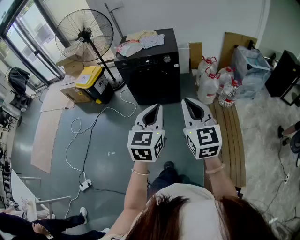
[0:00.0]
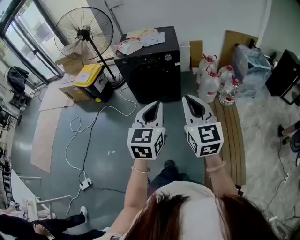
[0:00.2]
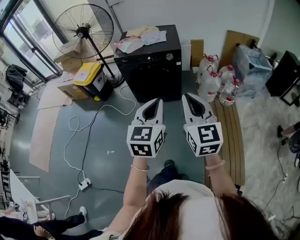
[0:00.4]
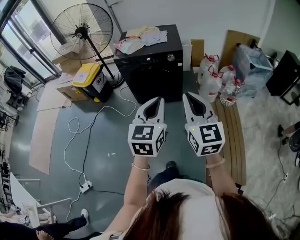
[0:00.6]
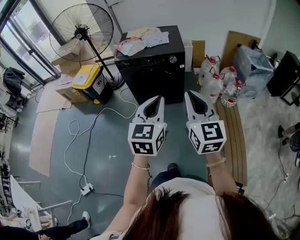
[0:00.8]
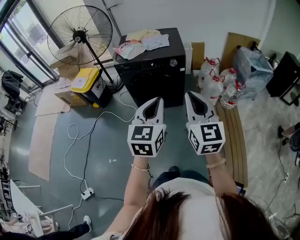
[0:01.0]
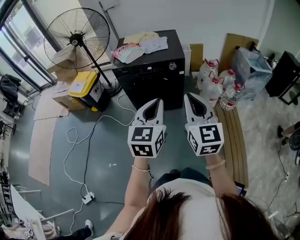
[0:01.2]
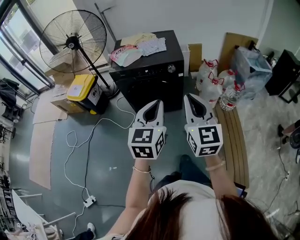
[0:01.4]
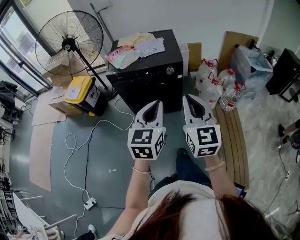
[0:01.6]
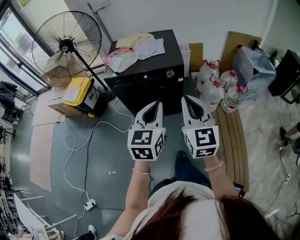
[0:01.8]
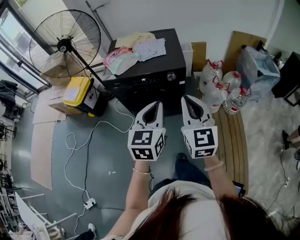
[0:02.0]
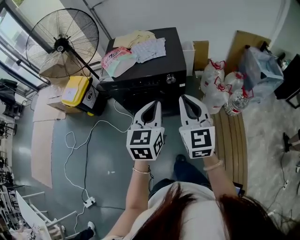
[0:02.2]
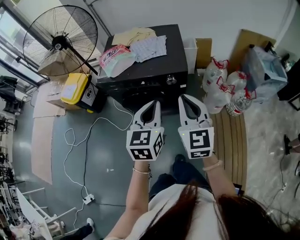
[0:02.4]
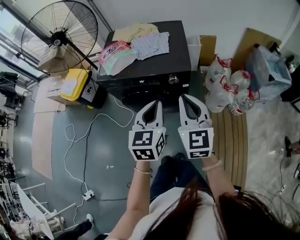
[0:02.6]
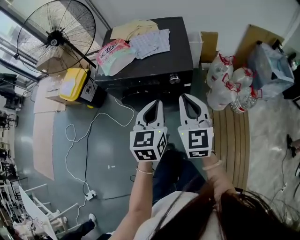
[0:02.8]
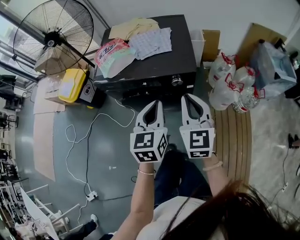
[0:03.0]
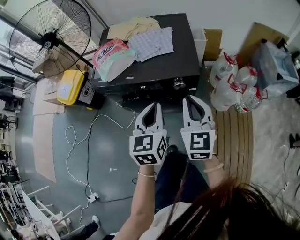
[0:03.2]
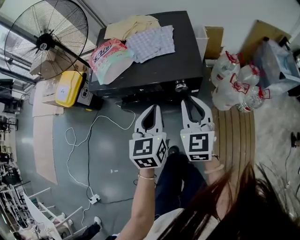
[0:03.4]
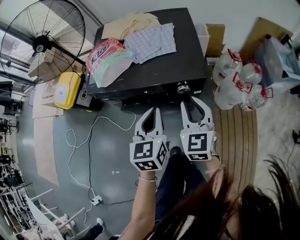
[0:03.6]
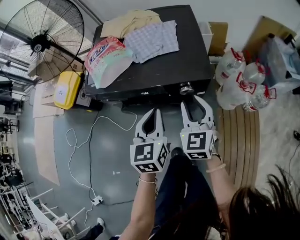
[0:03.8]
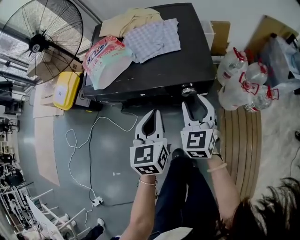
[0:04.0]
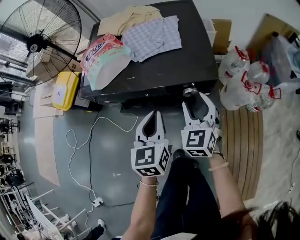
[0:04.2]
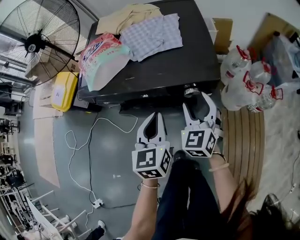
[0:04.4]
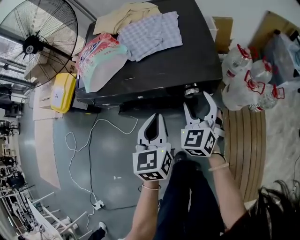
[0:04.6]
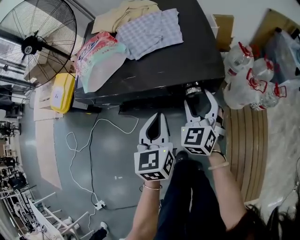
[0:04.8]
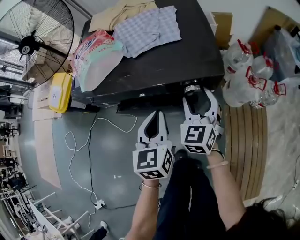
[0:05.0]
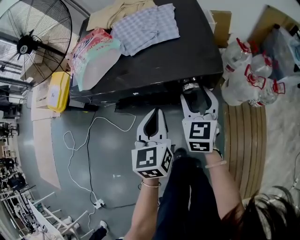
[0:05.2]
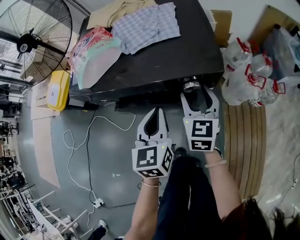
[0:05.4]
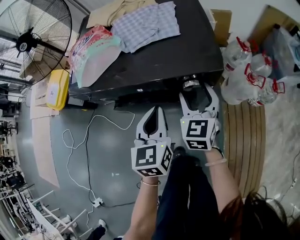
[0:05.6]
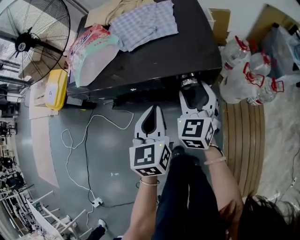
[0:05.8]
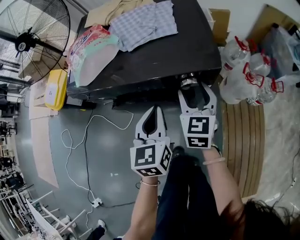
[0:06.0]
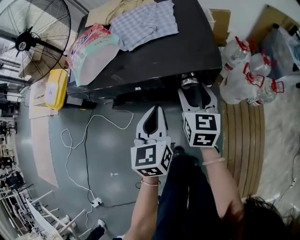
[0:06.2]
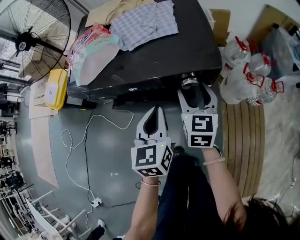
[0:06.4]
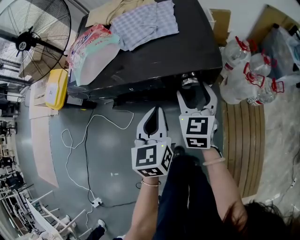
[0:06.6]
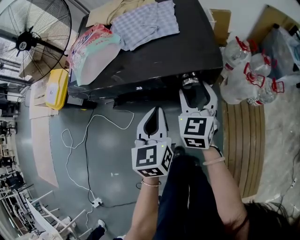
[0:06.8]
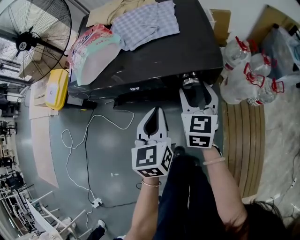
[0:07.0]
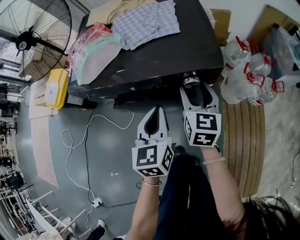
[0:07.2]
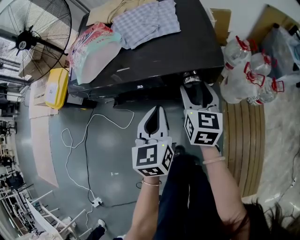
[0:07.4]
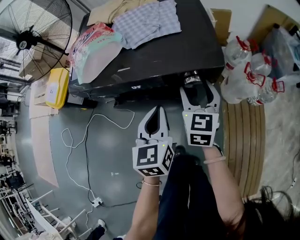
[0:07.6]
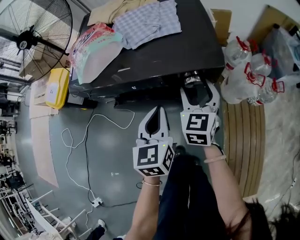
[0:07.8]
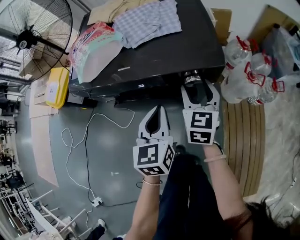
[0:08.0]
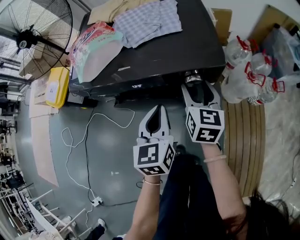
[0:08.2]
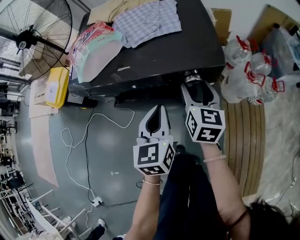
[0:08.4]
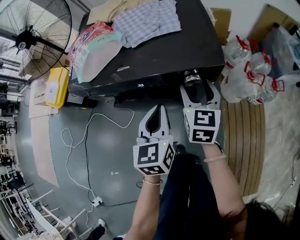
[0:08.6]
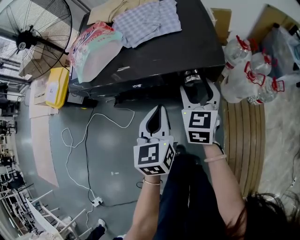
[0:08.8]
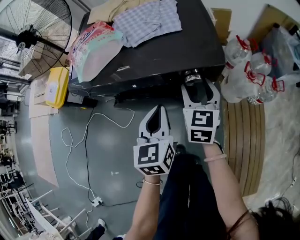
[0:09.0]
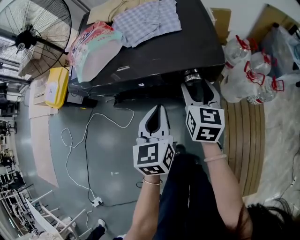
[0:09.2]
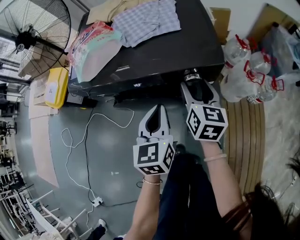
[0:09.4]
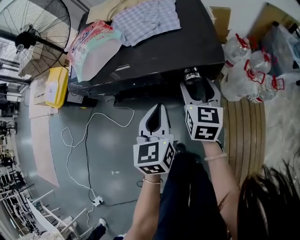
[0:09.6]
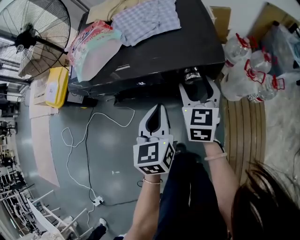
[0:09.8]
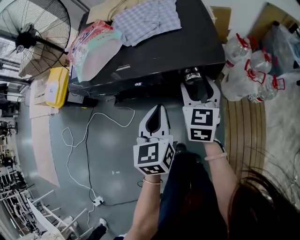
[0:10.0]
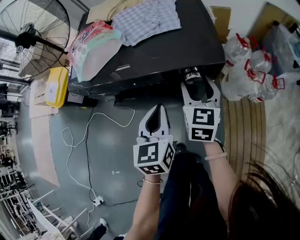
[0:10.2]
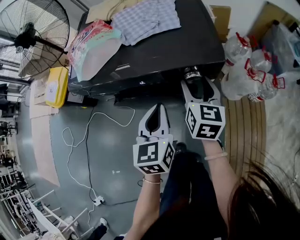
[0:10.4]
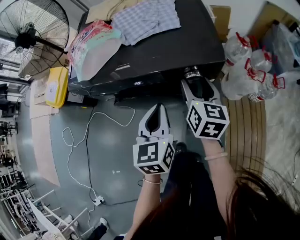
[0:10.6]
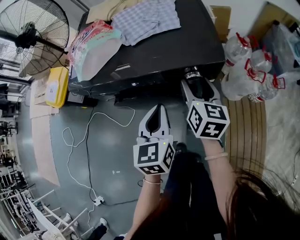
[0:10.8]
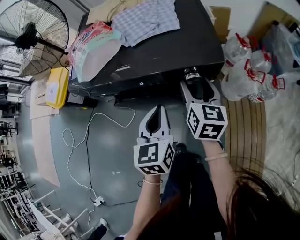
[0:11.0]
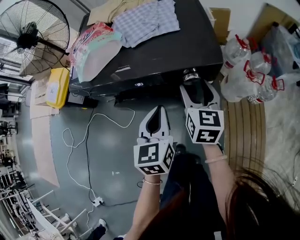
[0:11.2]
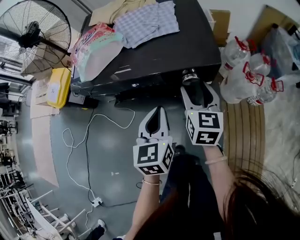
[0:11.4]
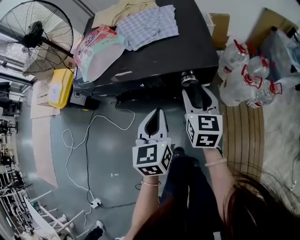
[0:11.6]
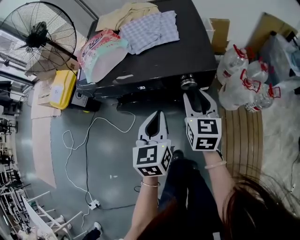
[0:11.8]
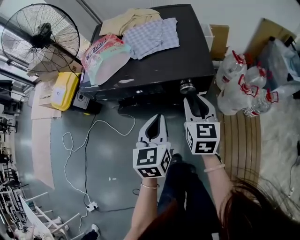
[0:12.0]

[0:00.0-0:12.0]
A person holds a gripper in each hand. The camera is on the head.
0.0 to 1.6 s: Both grippers move forward, about 25 cm.
1.6 to 3.0 s: Both grippers move forward and downward, roughly 30 cm.
3.0 to 4.4 s: Both grippers move downward and forward, roughly 20 cm. The right gripper turns by some 20 degrees, and opens up.
4.4 to 6.0 s: The right gripper turns by some 20 degrees.
6.0 to 7.6 s: The grippers stay close to where they were, moving slightly.
7.6 to 9.0 s: The grippers make only small movements.
10.4 to 12.0 s: The right gripper moves approximately 5 cm, and closes up. Meanwhile the left gripper shifts by some 5 cm.

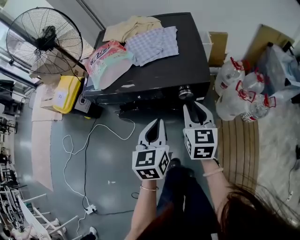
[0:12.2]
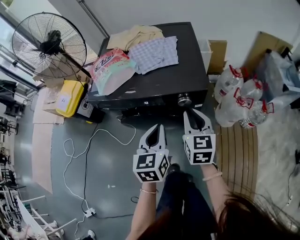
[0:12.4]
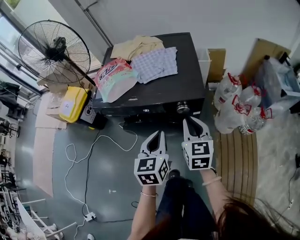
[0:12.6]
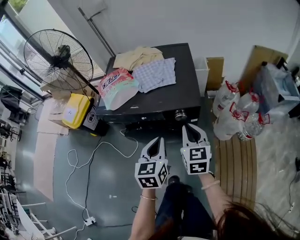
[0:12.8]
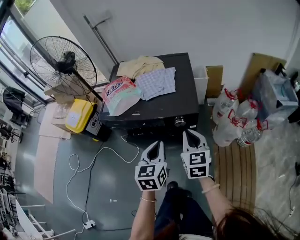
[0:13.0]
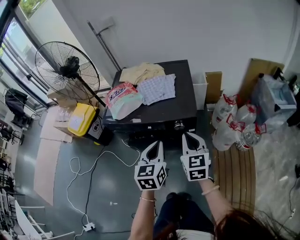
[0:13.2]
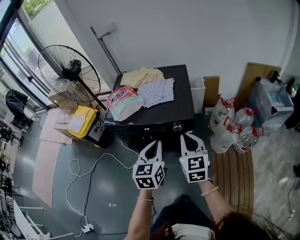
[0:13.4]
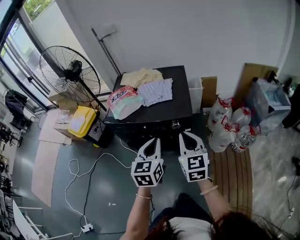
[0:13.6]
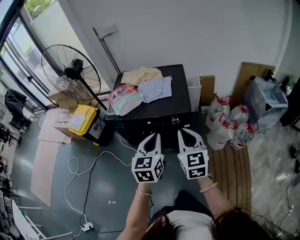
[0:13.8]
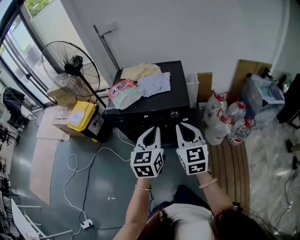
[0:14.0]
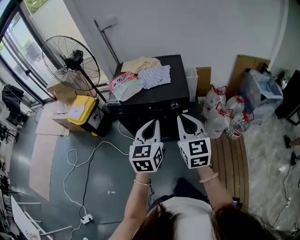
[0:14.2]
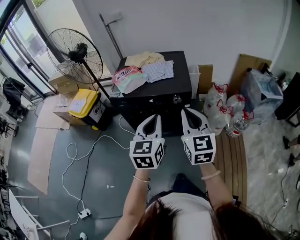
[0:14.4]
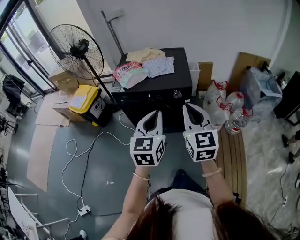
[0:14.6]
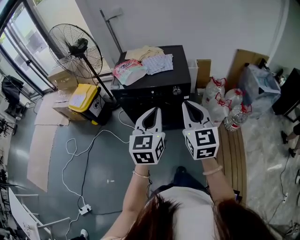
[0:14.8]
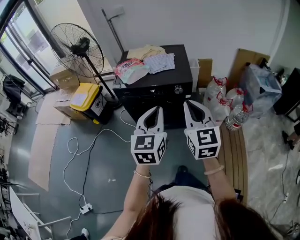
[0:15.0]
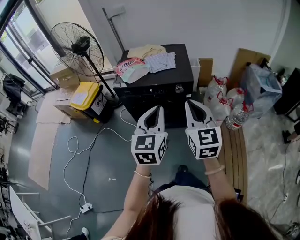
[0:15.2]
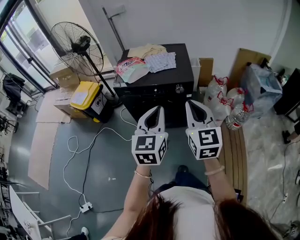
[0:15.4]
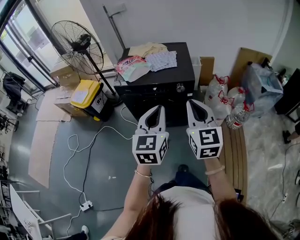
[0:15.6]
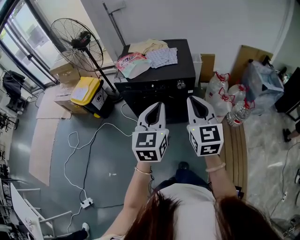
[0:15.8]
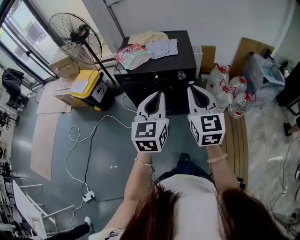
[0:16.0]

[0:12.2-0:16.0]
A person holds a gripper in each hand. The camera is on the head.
12.2 to 13.4 s: The left gripper goes about 15 cm upward. The right gripper heads upward and backward, covering some 15 cm.
13.4 to 14.8 s: Both grippers travel together backward and upward, about 20 cm.
14.8 to 16.0 s: The grippers move only a little.

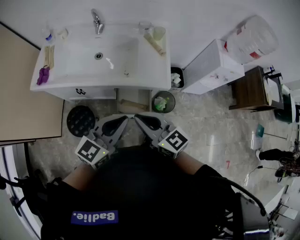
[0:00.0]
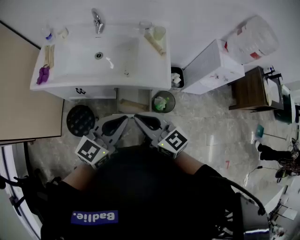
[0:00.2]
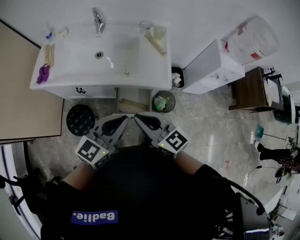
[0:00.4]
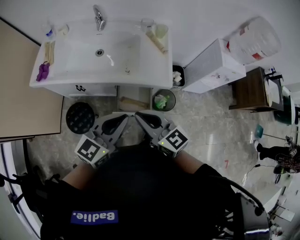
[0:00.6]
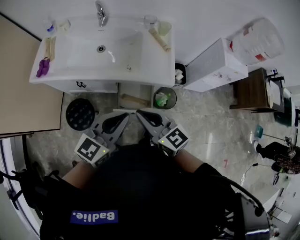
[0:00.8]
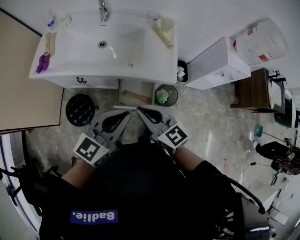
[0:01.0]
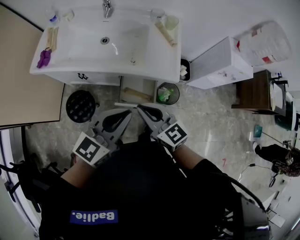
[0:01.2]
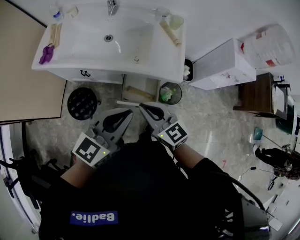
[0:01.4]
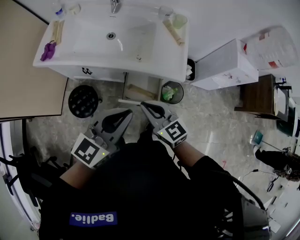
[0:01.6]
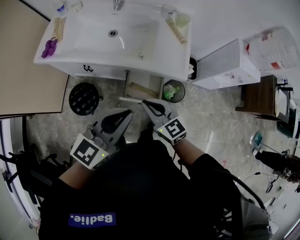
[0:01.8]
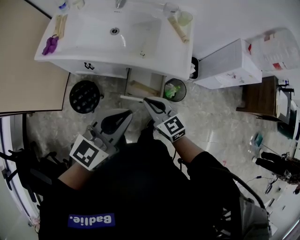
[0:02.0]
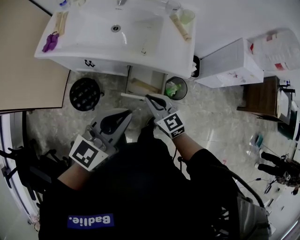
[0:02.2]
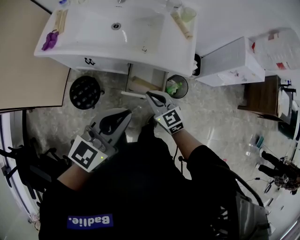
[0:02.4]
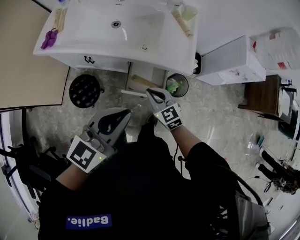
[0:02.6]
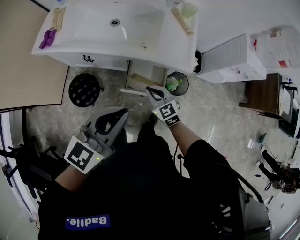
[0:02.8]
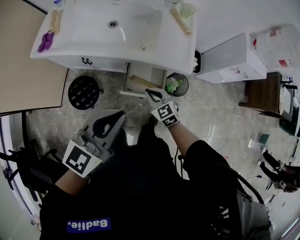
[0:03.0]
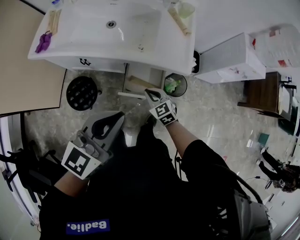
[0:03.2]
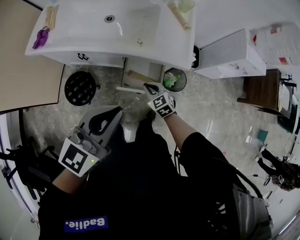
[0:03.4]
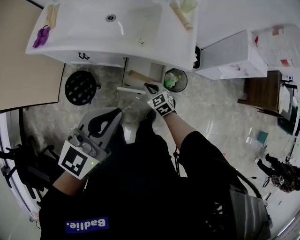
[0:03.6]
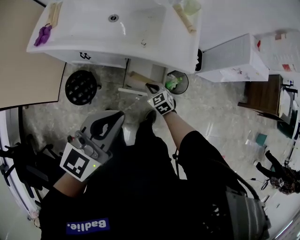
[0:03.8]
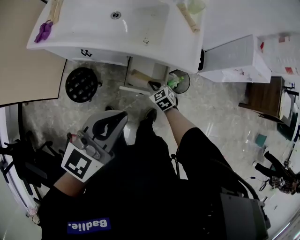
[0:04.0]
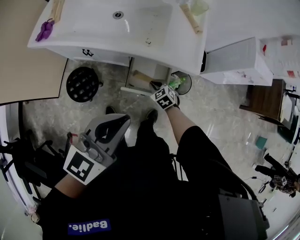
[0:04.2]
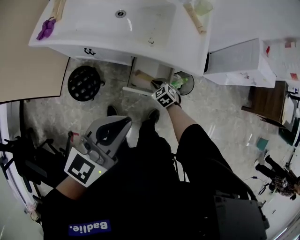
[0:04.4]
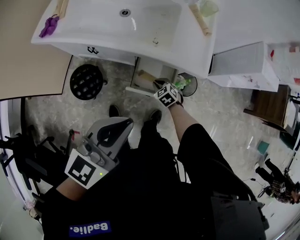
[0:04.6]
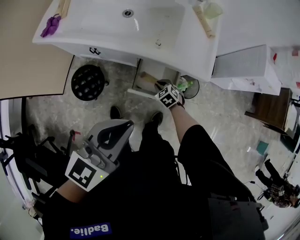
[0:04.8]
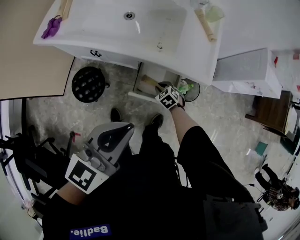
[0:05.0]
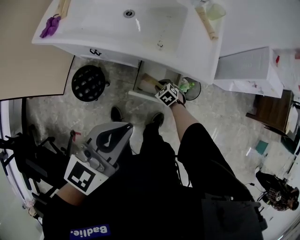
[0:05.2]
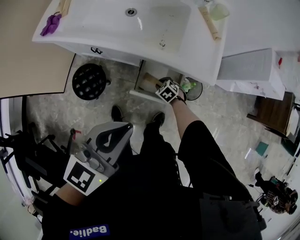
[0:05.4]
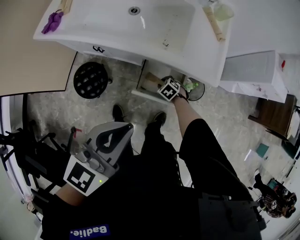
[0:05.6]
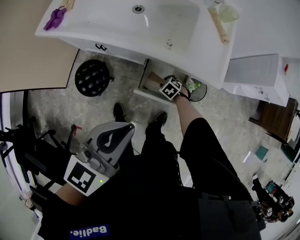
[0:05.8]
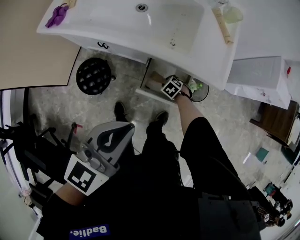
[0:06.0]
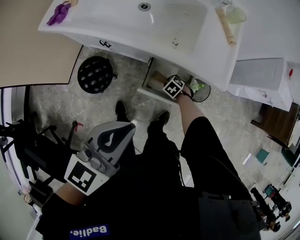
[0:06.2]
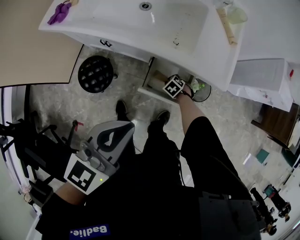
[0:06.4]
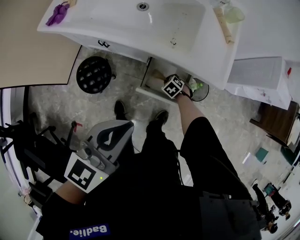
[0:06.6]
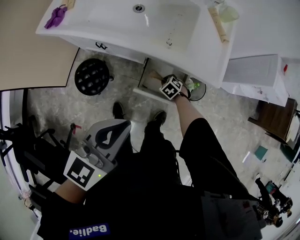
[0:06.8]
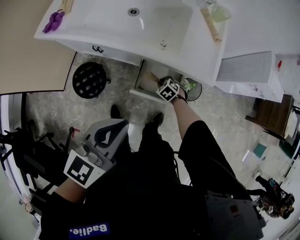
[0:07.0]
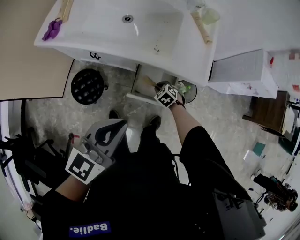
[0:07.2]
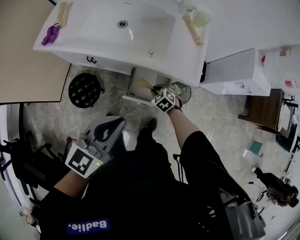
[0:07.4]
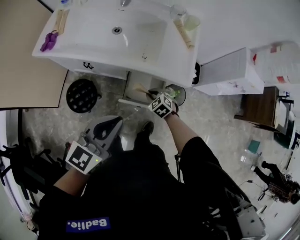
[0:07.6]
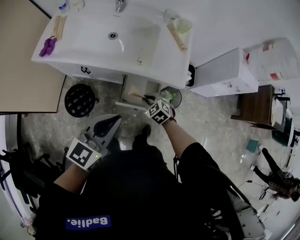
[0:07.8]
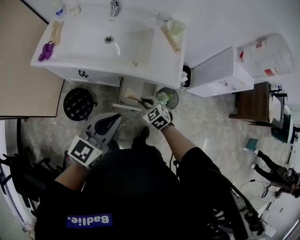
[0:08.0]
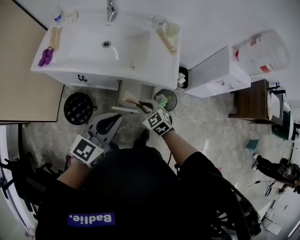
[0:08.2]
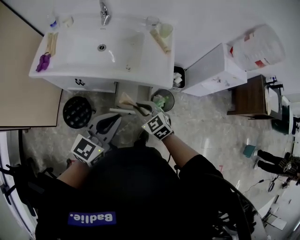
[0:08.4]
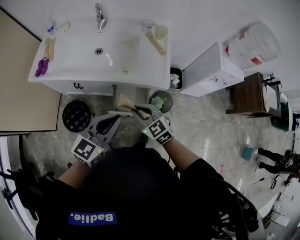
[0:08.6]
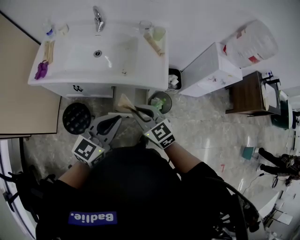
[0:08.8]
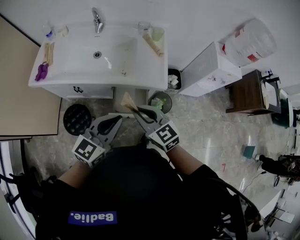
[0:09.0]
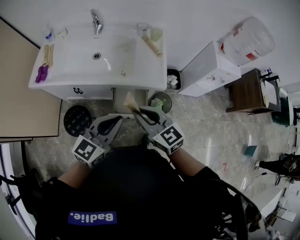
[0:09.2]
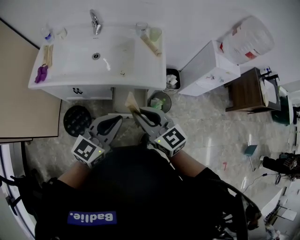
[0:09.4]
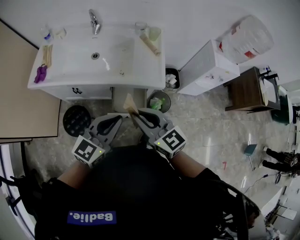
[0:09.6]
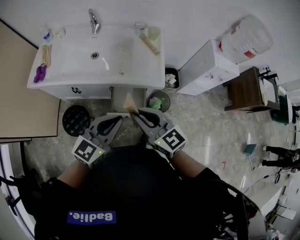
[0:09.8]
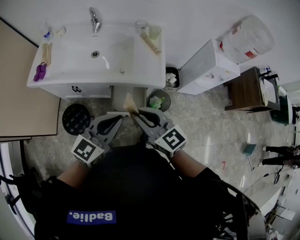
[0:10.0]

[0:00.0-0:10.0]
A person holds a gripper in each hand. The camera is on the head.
0.0 to 1.4 s: The right gripper goes about 5 cm downward.
1.4 to 2.8 s: The right gripper goes about 15 cm downward, and changes its angle by some 20 degrees.
2.8 to 4.2 s: The right gripper moves downward, roughly 20 cm, and changes its angle by some 20 degrees.
4.2 to 5.8 s: The left gripper ends up approximately 5 cm from where it was. The right gripper heads downward, covering some 10 cm, changes its angle by approximately 20 degrees, and opens its fingers.
5.8 to 7.2 s: The right gripper moves upward, approximately 10 cm.
7.2 to 8.6 s: The left gripper shifts about 10 cm to the right and upward; the right gripper shifts some 35 cm upward, and tips its fingers upward by roughly 40 degrees.
8.6 to 10.0 s: The right gripper shifts some 10 cm upward, and rotates about 20 degrees.
